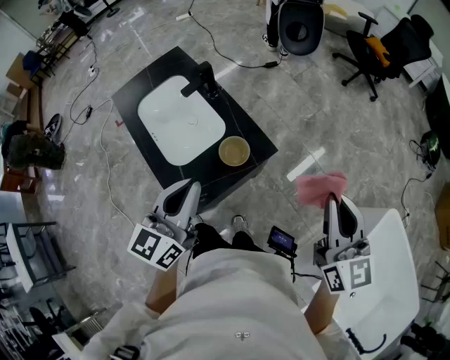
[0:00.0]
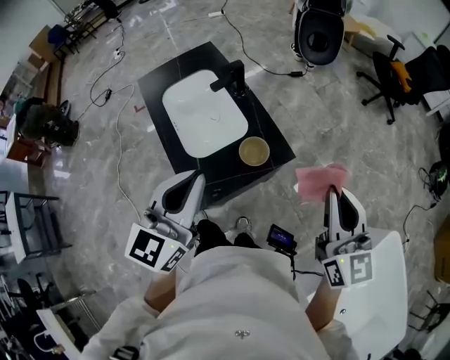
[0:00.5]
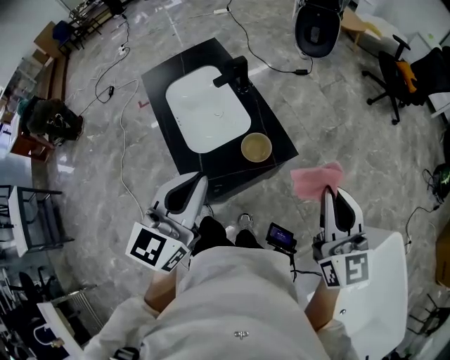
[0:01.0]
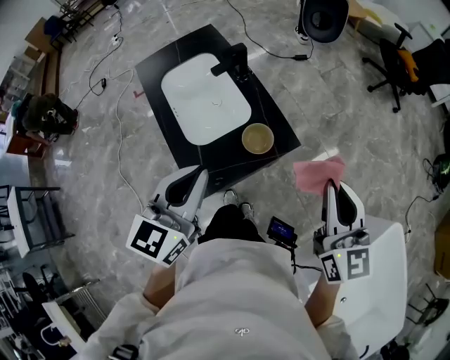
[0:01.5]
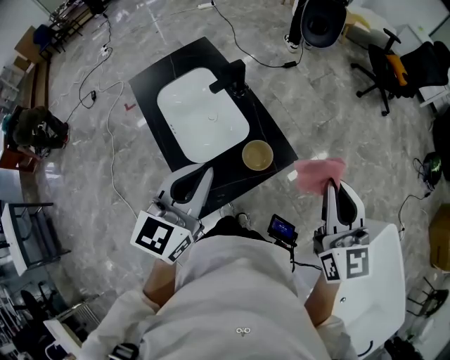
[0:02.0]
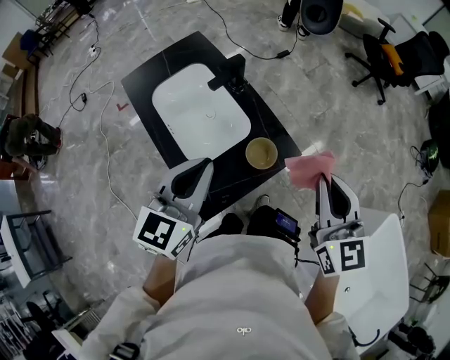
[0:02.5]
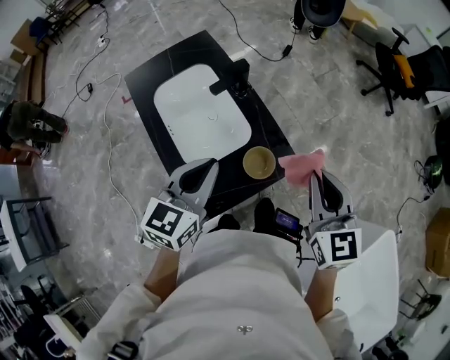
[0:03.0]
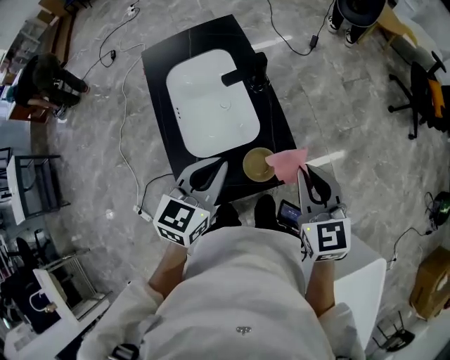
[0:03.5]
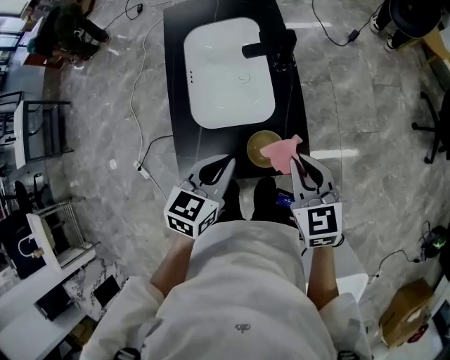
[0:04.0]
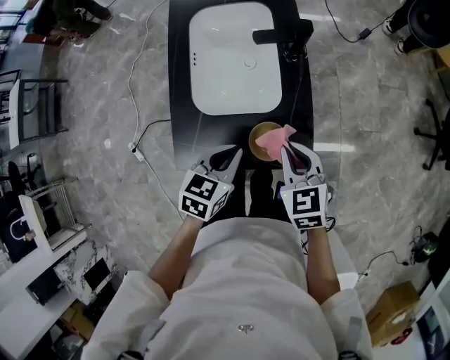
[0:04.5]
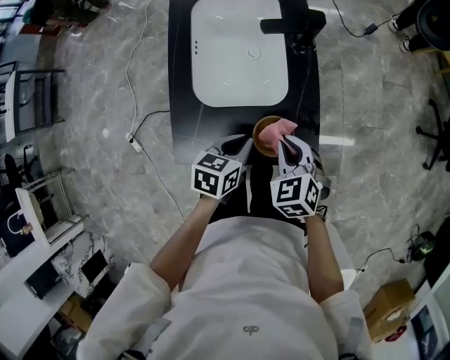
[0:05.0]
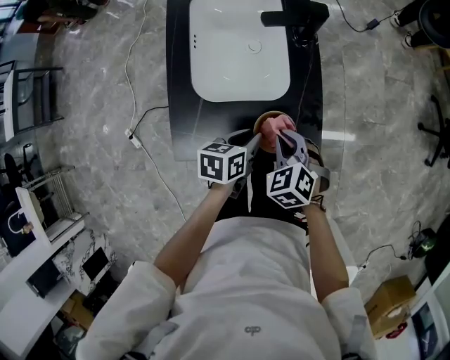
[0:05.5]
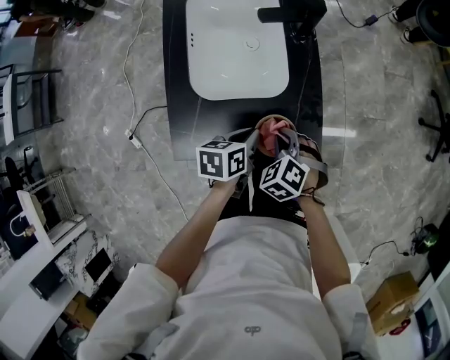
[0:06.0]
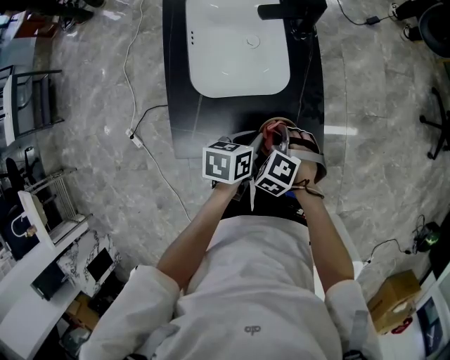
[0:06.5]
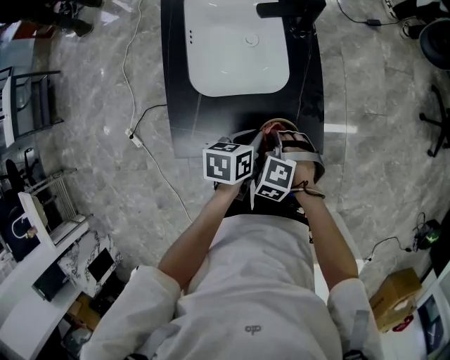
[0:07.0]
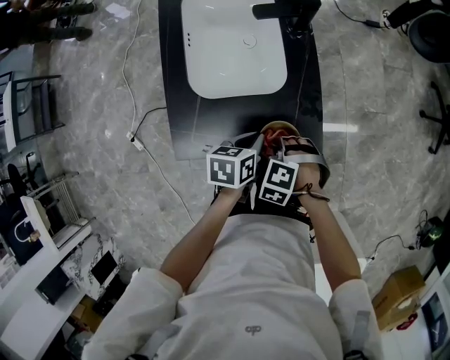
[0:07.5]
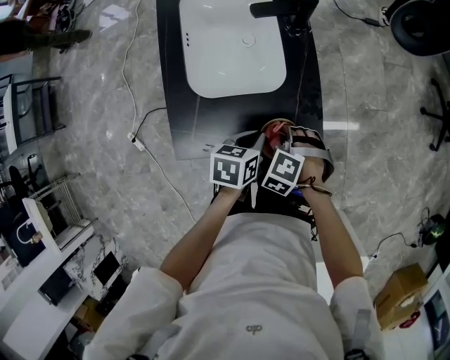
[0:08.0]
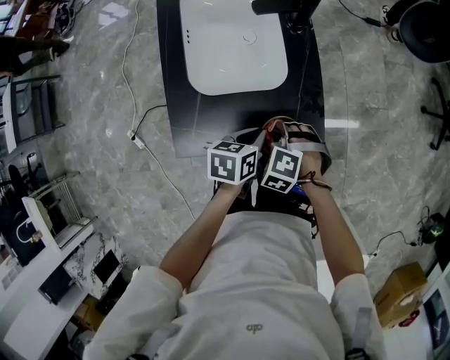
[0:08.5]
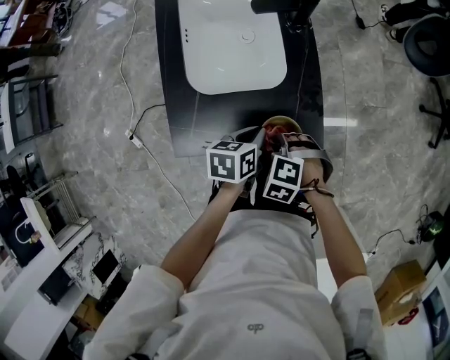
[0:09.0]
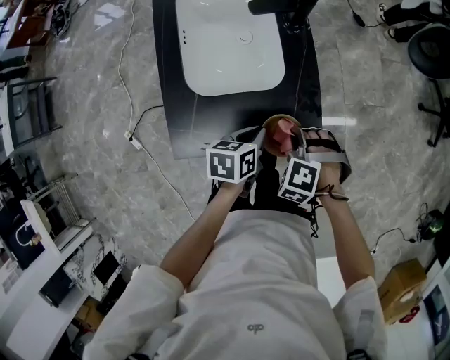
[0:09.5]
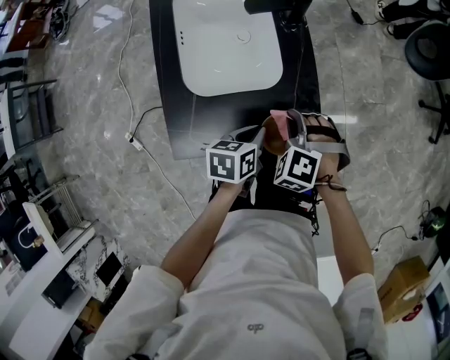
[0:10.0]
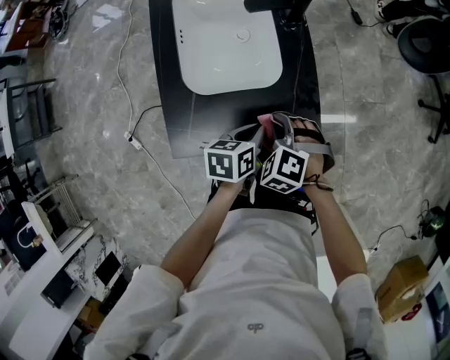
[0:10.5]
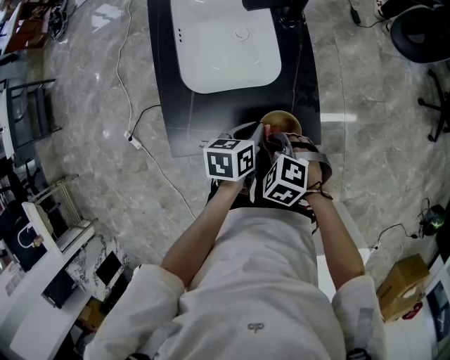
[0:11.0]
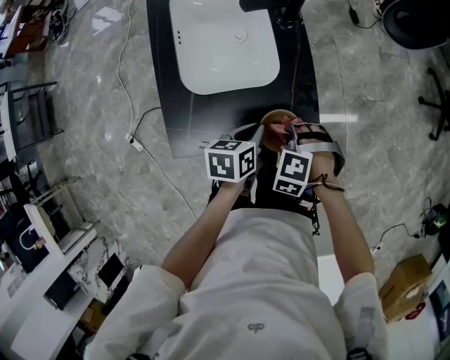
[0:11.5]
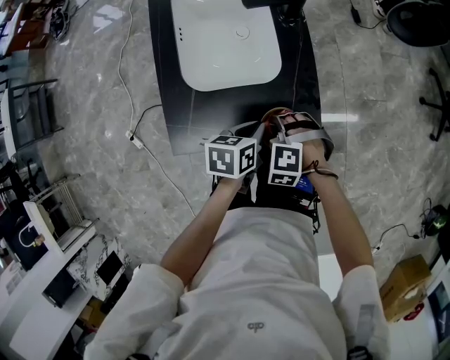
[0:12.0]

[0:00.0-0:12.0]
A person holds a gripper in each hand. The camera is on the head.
0:00.0 to 0:02.0: The right gripper is displaced to the left and forward by approximately 10 cm; the left gripper travels to the left by roughly 5 cm.
0:02.0 to 0:04.0: The grippers both shift downward by about 20 cm. The right gripper rotates some 40 degrees, while the left gripper swivels approximately 40 degrees.
0:04.0 to 0:06.0: Both grippers move downward, some 20 cm. The left gripper turns by some 40 degrees. The right gripper points its fingers approximately 30 degrees further downward.
0:06.0 to 0:08.0: The right gripper turns by about 20 degrees.
0:08.0 to 0:10.0: The right gripper shifts some 5 cm upward.
0:10.0 to 0:12.0: The right gripper ends up some 10 cm from where it was.

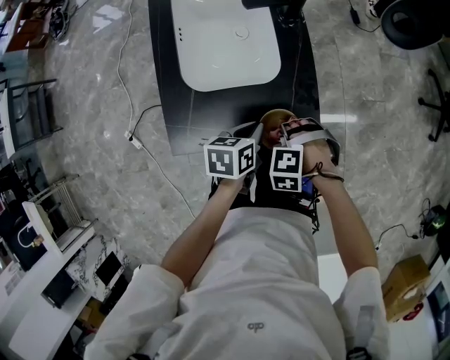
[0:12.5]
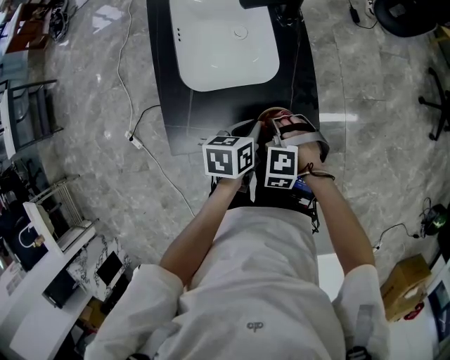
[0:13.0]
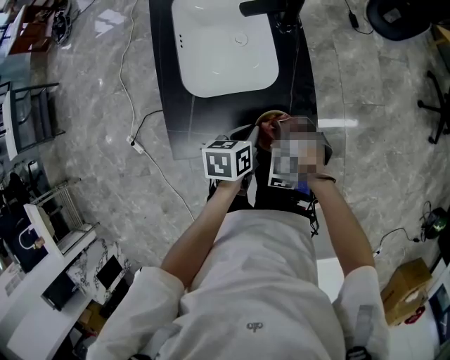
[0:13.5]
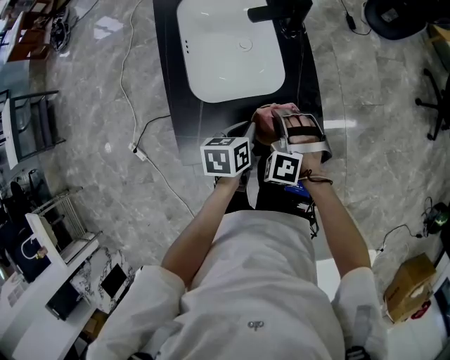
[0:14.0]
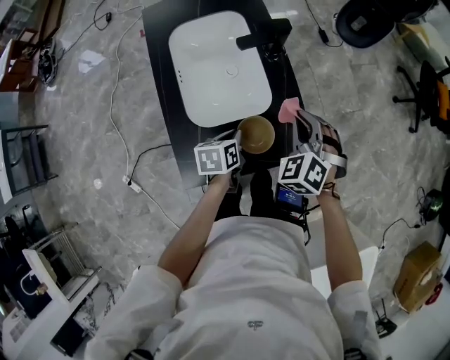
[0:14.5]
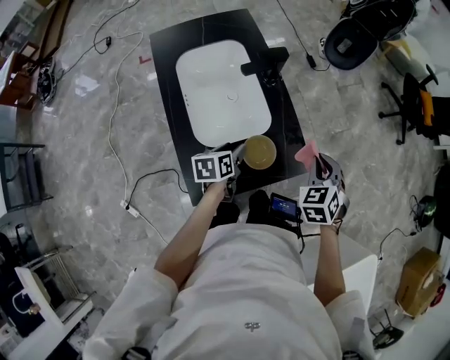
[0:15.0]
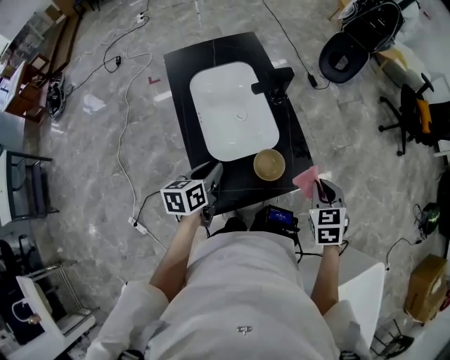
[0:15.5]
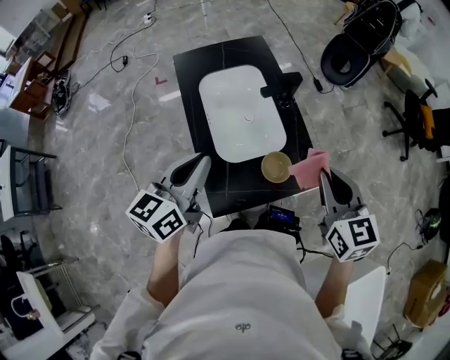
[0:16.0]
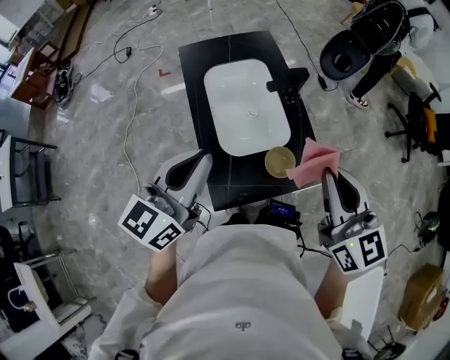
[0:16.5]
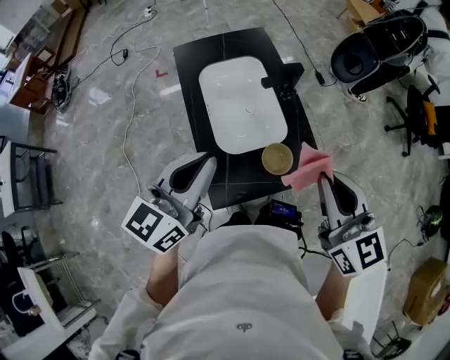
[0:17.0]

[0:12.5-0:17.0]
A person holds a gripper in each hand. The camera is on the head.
0:12.5 to 0:14.5: The left gripper moves approximately 10 cm. The right gripper goes about 15 cm upward, and points its fingers approximately 40 degrees further upward.
0:14.5 to 0:17.0: The left gripper goes about 35 cm upward, angles its fingers upward, by roughly 40 degrees, and opens, then closes again; the right gripper shifts about 30 cm upward and backward, and angles its fingers upward, by about 30 degrees.

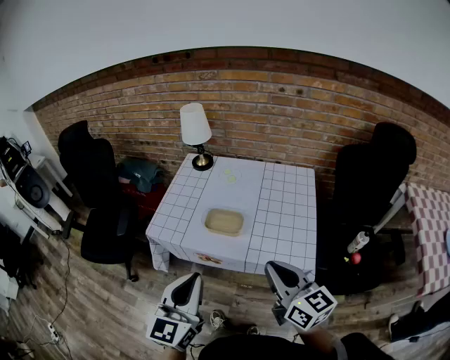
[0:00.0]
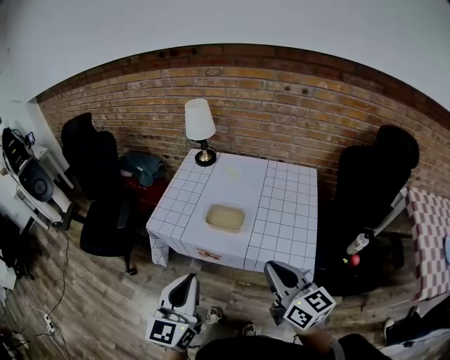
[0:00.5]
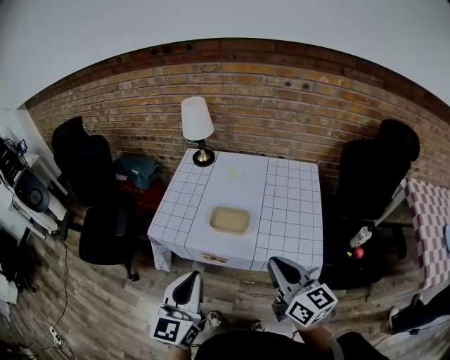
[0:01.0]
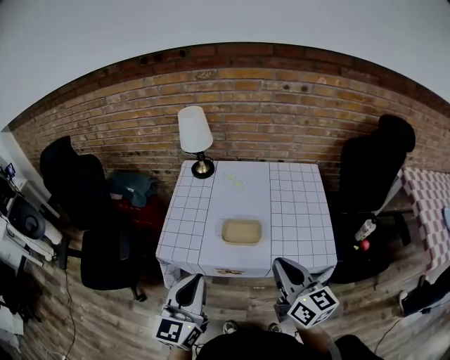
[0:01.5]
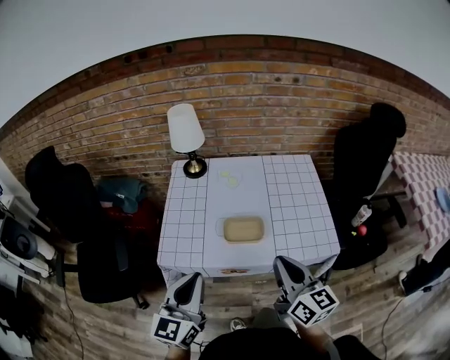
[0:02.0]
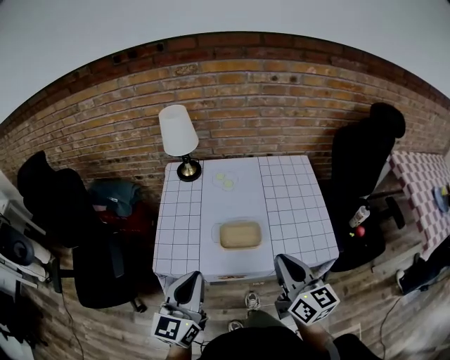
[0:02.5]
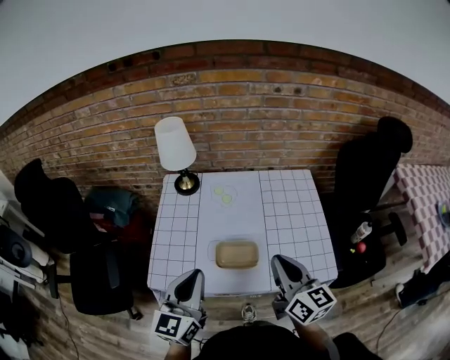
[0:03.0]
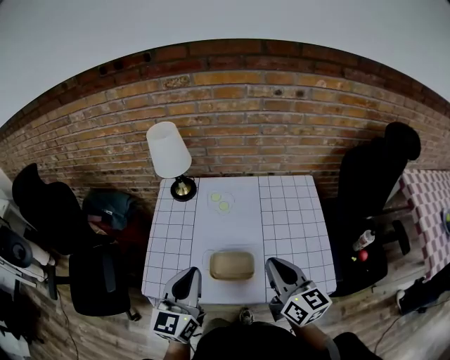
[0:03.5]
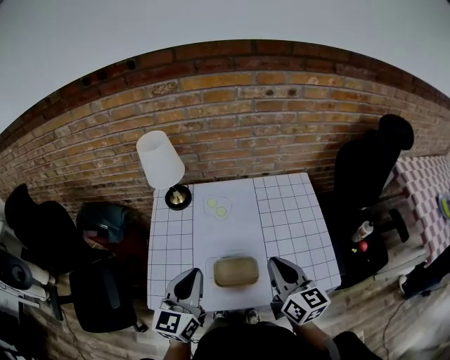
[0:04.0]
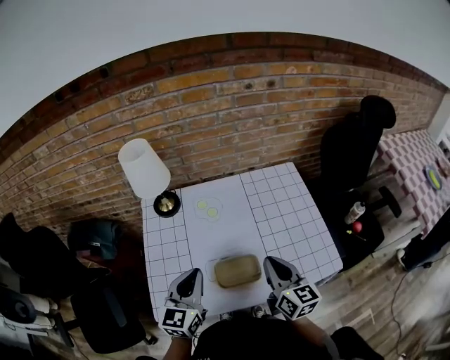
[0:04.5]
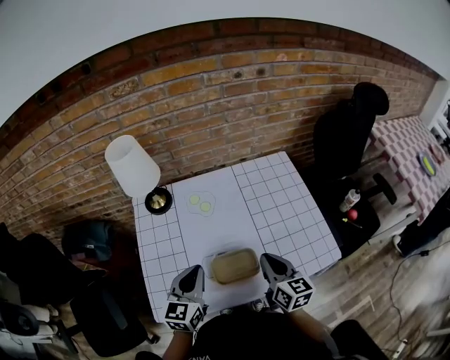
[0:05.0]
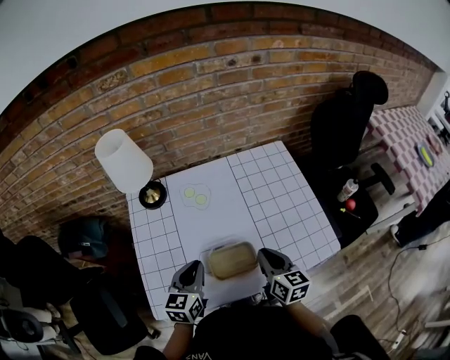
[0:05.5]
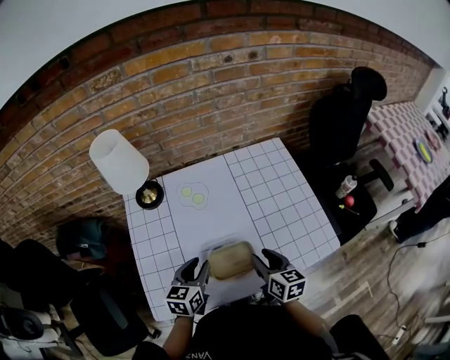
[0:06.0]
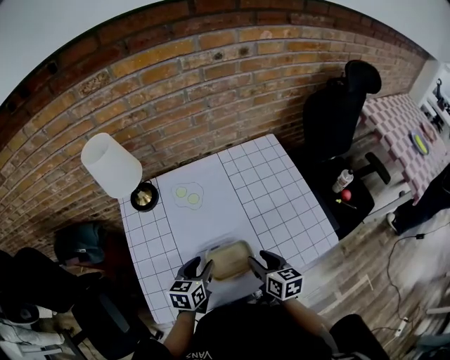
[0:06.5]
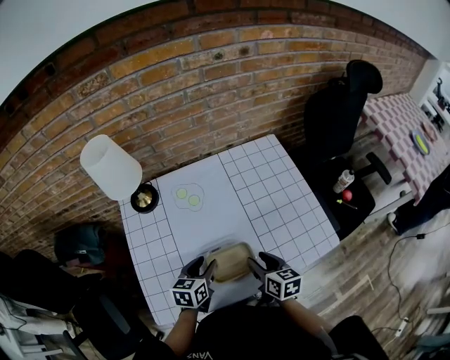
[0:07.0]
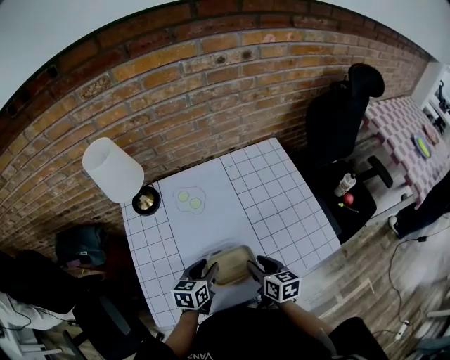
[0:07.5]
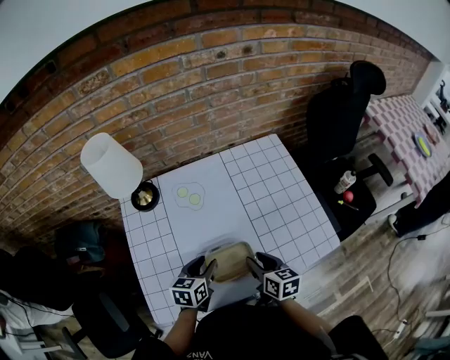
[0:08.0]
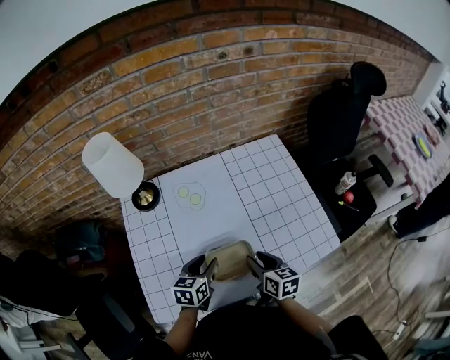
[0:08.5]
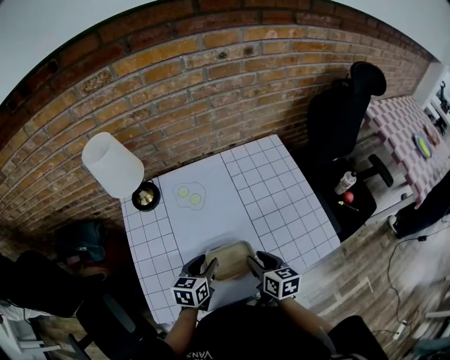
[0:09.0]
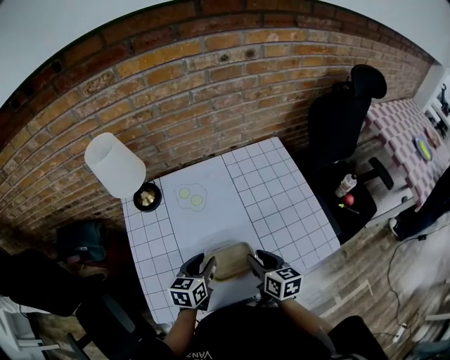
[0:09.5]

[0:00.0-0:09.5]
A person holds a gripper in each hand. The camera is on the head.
0:00.0 to 0:02.0: Both grippers travel together to the left and forward, roughly 15 cm. The right gripper turns by about 20 degrees.
0:02.0 to 0:04.0: The grippers both shift forward by roughly 20 cm.
0:04.0 to 0:05.5: The two grippers go approximately 15 cm downward. The left gripper turns by some 20 degrees.
0:05.5 to 0:07.5: The grippers both shift downward by roughly 10 cm. The right gripper opens its fingers, while the left gripper opens its fingers.
0:07.5 to 0:09.5: The grippers make only small movements.

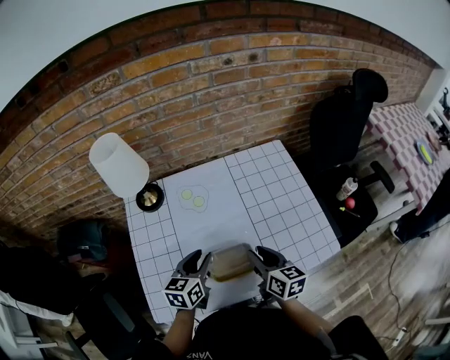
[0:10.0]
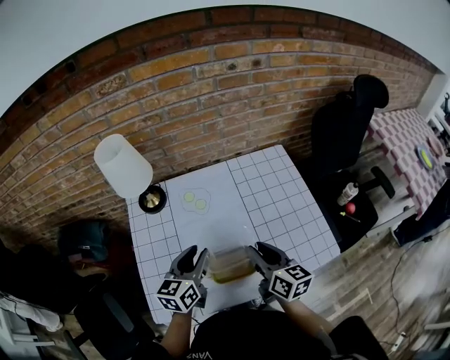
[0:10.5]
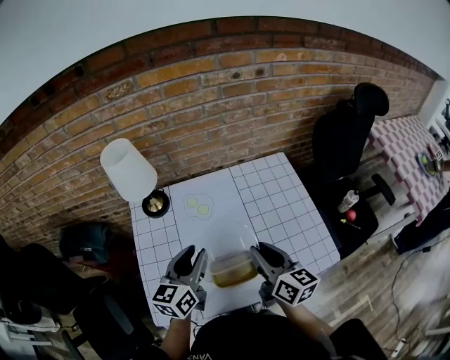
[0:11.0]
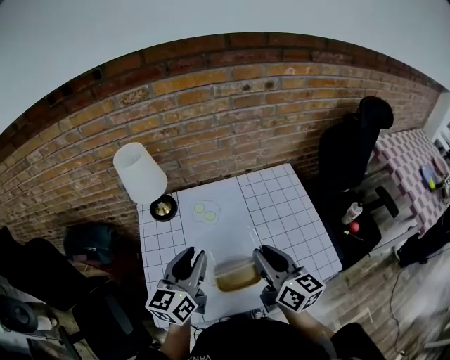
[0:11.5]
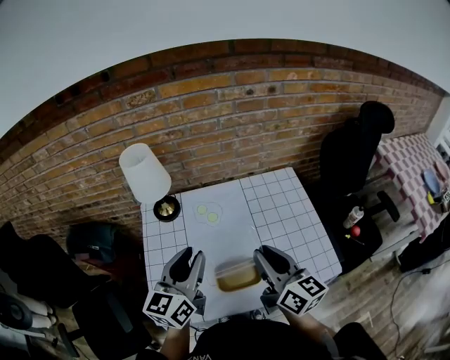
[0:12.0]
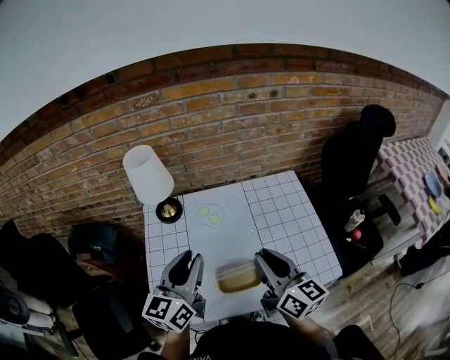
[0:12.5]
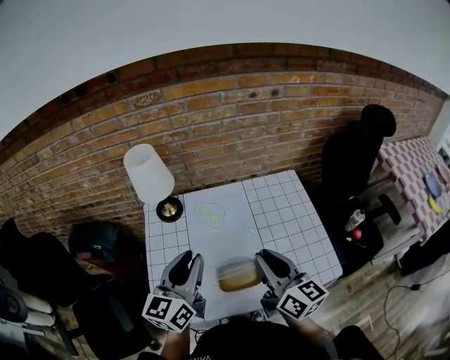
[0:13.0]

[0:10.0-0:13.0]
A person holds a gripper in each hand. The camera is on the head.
0:10.0 to 0:11.5: Both grippers move upward, approximately 15 cm. The left gripper swivels roughly 20 degrees.
0:11.5 to 0:13.0: The left gripper moves approximately 5 cm.
